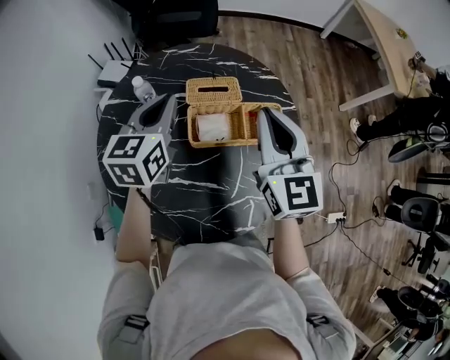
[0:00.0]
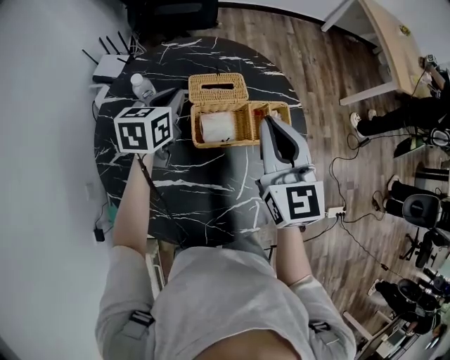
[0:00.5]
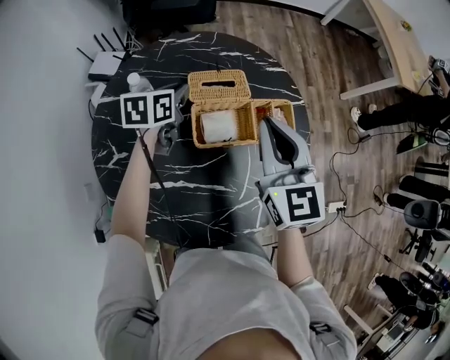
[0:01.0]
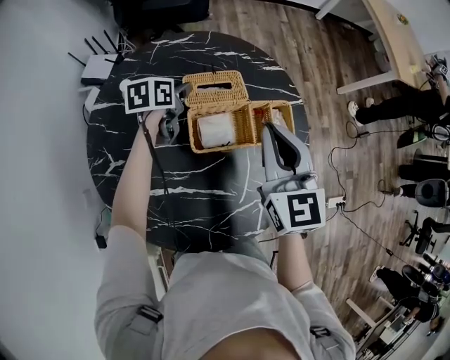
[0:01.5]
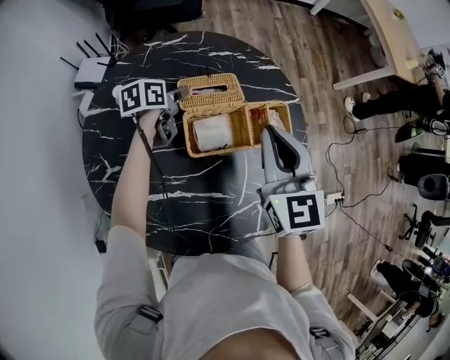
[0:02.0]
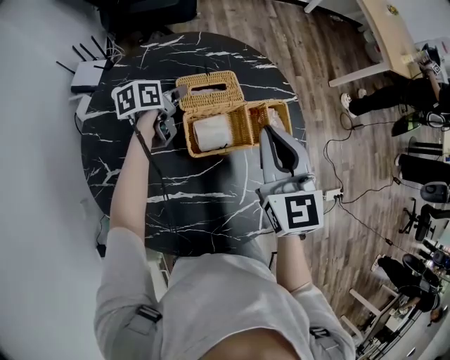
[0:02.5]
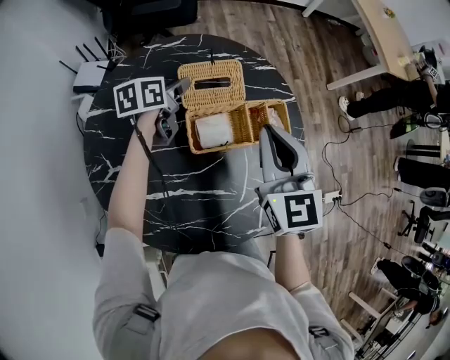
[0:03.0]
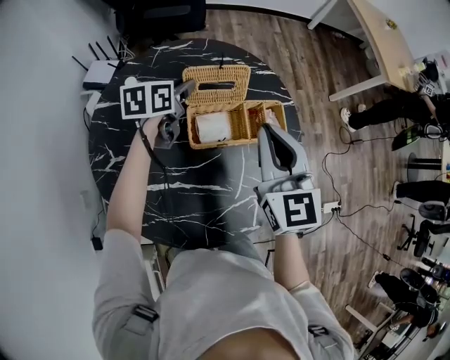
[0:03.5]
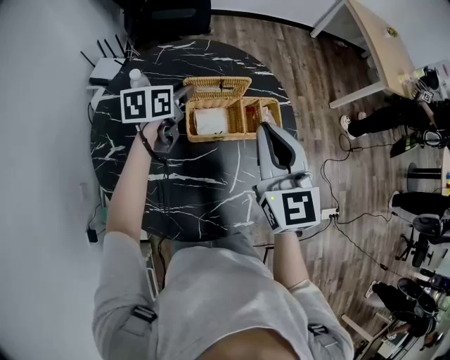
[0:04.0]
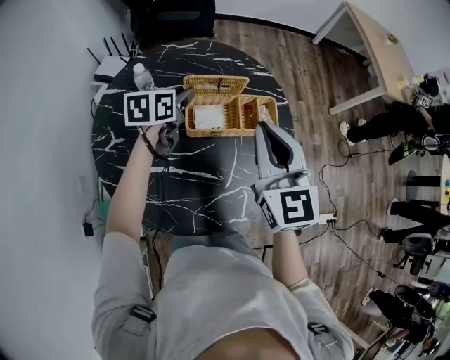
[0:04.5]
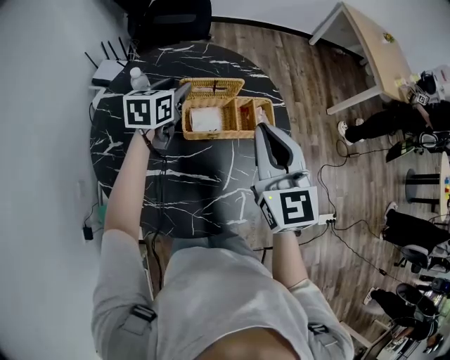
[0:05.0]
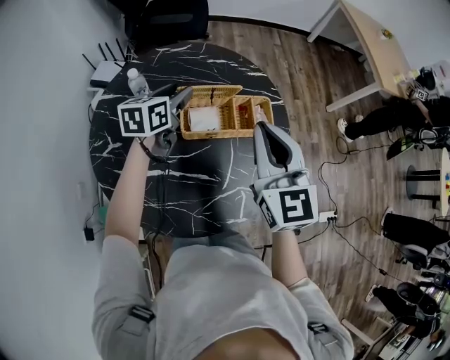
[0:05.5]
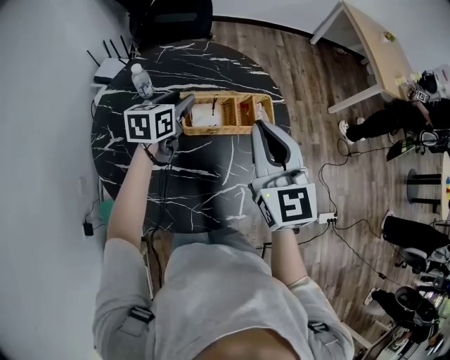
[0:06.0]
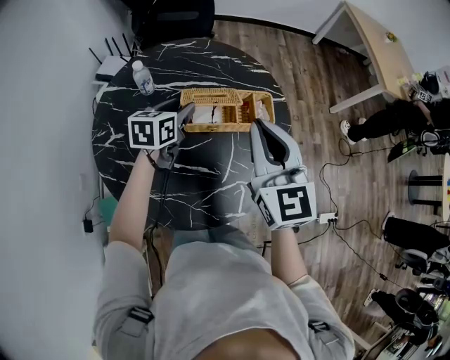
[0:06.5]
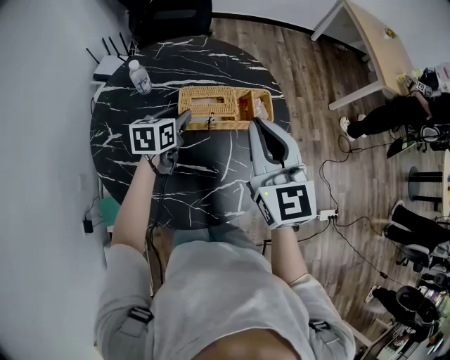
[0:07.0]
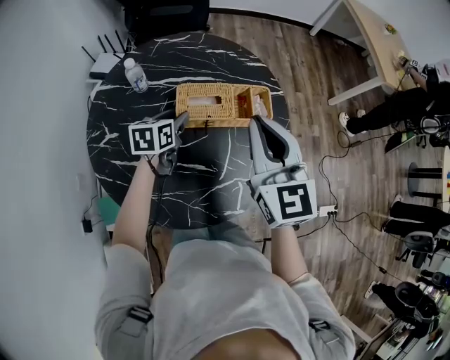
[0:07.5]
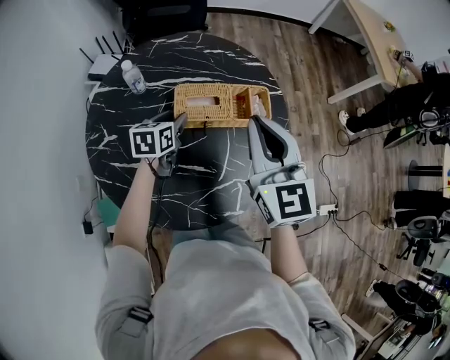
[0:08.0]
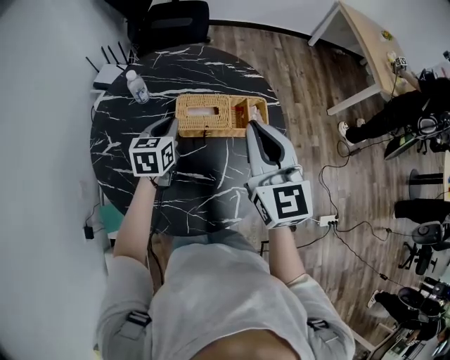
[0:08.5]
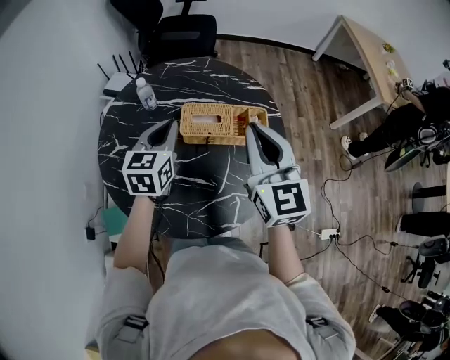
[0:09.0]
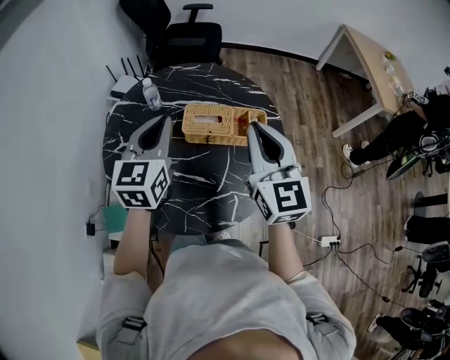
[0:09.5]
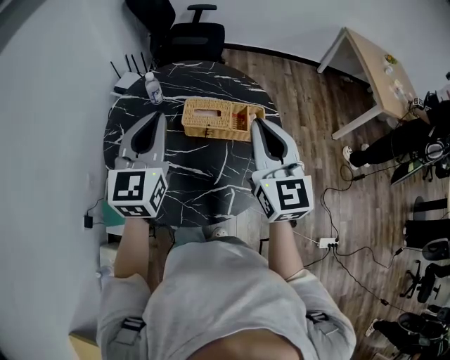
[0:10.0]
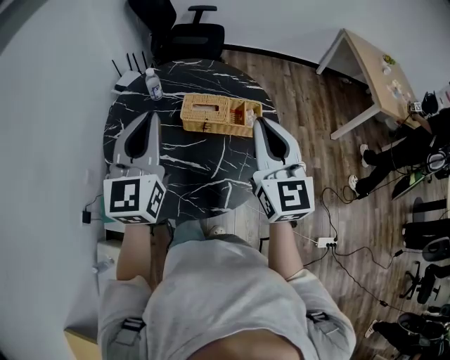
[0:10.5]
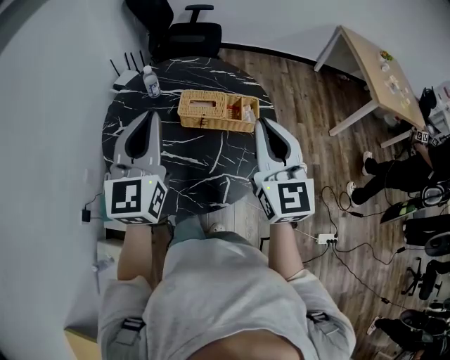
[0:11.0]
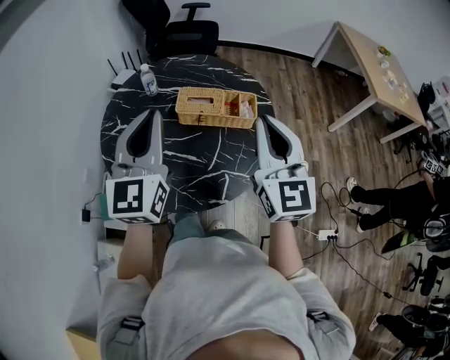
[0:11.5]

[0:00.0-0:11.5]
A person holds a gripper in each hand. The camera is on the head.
0:00.0 to 0:02.0: The right gripper travels downward by roughly 5 cm; the left gripper moves downward and forward, some 25 cm, swivels some 50 degrees, and opens.
0:02.0 to 0:04.0: The left gripper shifts approximately 15 cm upward and backward, while the right gripper goes approximately 10 cm backward and upward.
0:04.0 to 0:06.0: The left gripper goes approximately 5 cm backward.
0:06.0 to 0:07.5: The left gripper heads downward, covering approximately 10 cm.
0:07.5 to 0:09.5: The left gripper goes roughly 25 cm upward, rotates approximately 40 degrees, and closes its fingers.
0:09.5 to 0:11.5: The right gripper goes roughly 10 cm backward, while the left gripper shifts some 15 cm backward and upward.

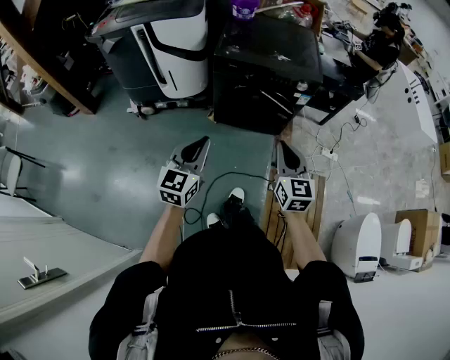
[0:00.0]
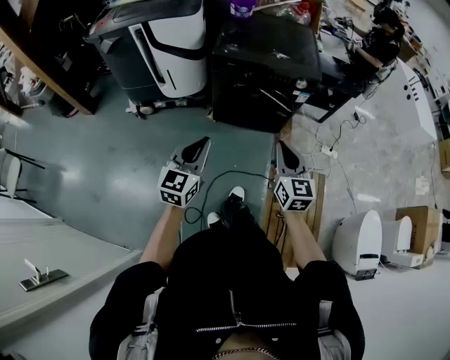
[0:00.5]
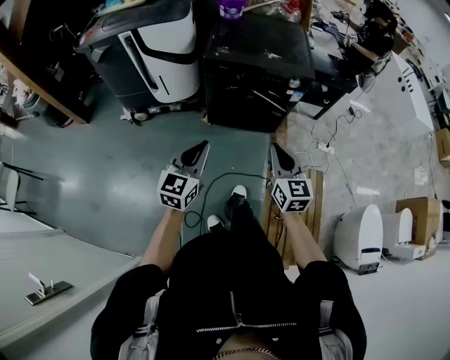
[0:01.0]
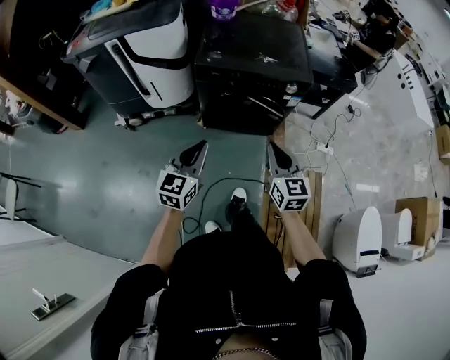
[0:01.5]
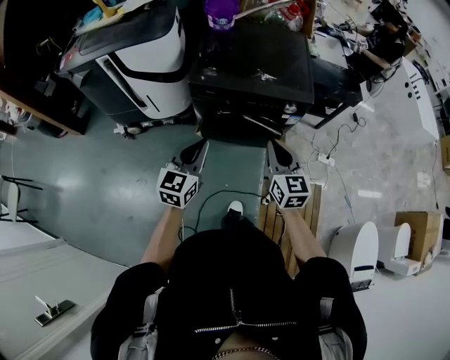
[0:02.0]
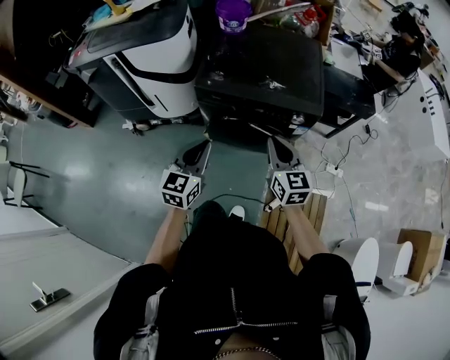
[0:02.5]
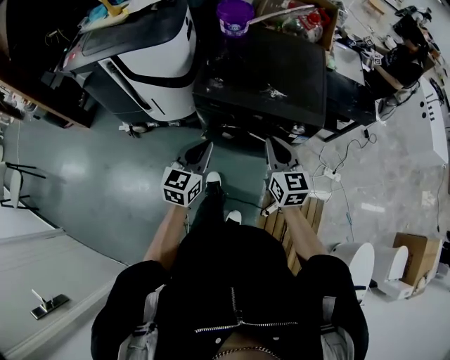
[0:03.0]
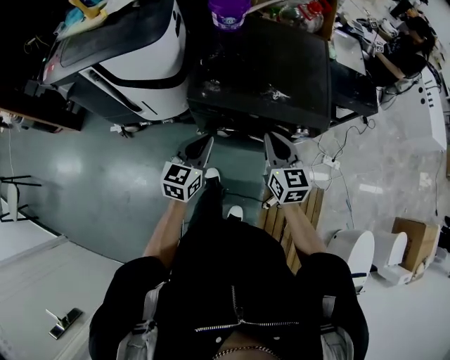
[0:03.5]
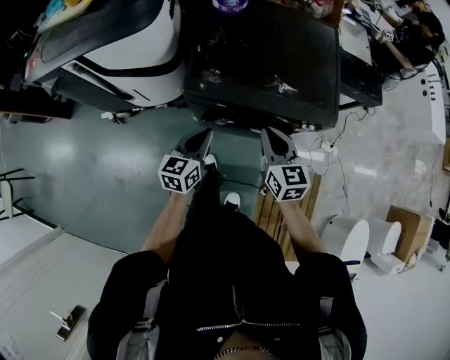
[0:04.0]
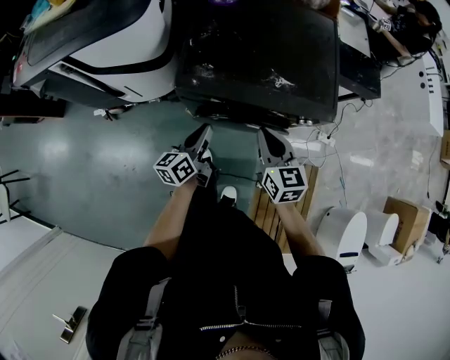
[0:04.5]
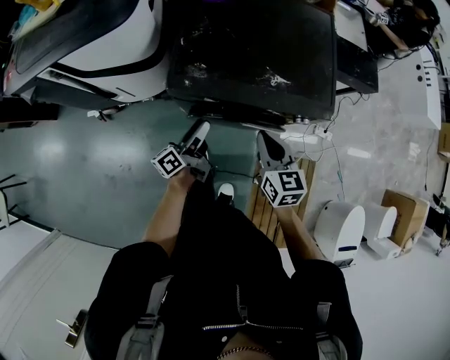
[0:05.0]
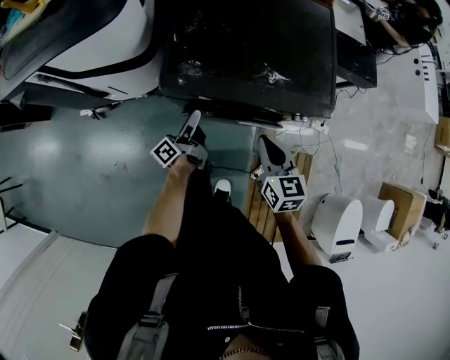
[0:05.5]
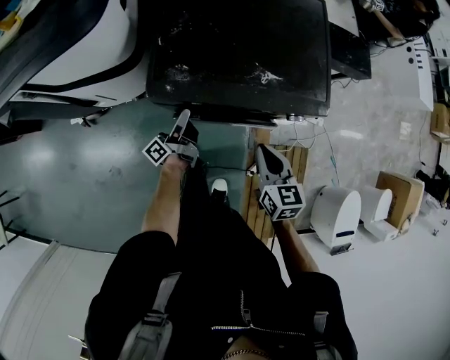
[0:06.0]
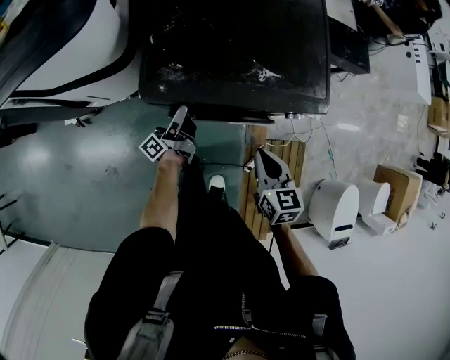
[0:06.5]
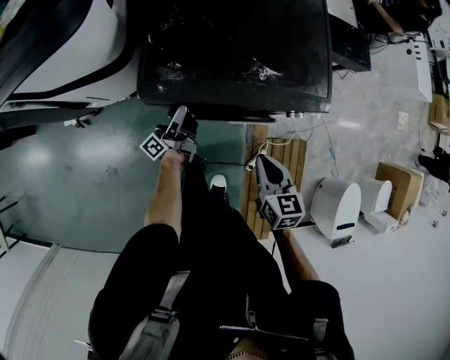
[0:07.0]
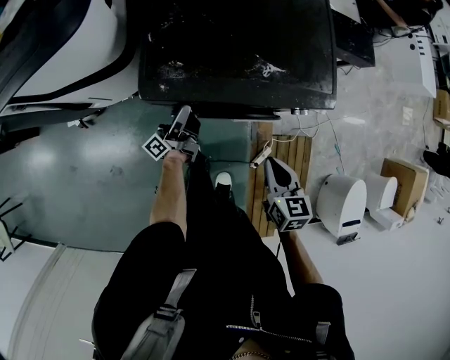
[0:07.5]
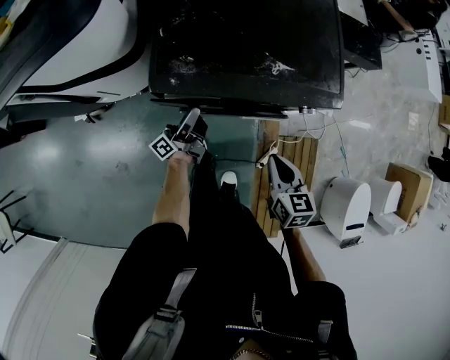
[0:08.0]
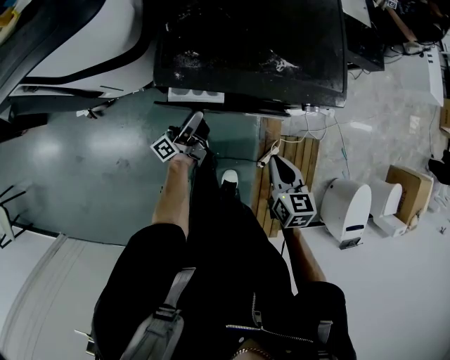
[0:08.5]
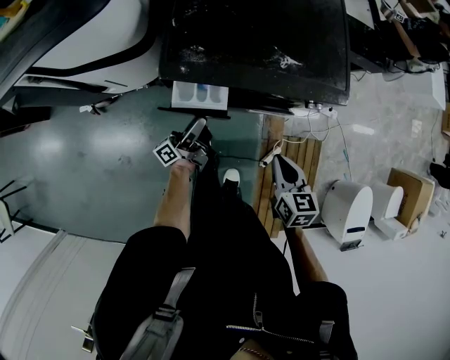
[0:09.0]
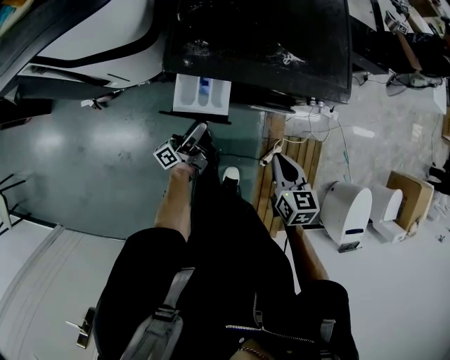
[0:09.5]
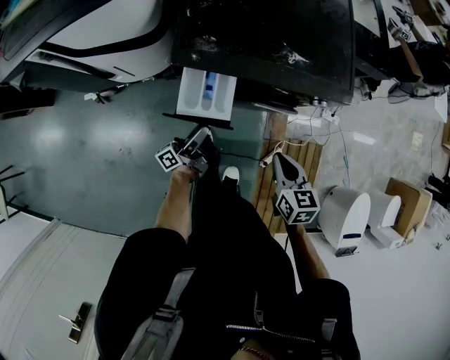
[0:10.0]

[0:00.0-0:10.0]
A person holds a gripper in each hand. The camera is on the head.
0:00.0 to 0:02.0: Both grippers move forward, about 20 cm.
0:02.0 to 0:04.0: The left gripper goes some 25 cm forward and downward, and rotates roughly 20 degrees, while the right gripper heads forward, covering roughly 20 cm.
0:04.0 to 0:06.0: The right gripper goes roughly 5 cm downward, while the left gripper goes roughly 15 cm downward and forward, rotates around the line of its fingers by some 60 degrees, counterclockwise from behind, and opens.
0:06.0 to 0:08.0: The right gripper shifts by some 5 cm.
0:08.0 to 0:10.0: The left gripper shifts roughly 10 cm backward.

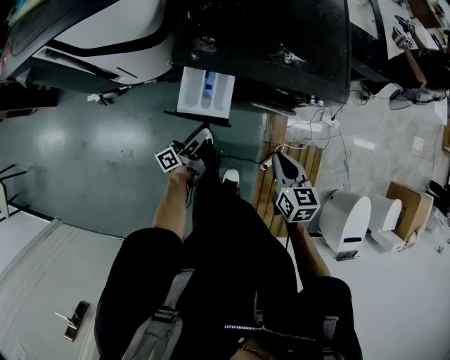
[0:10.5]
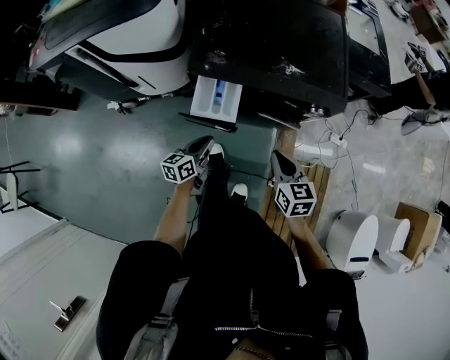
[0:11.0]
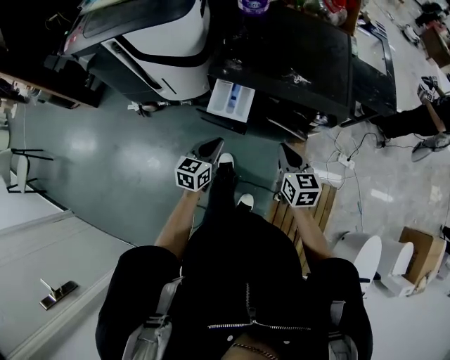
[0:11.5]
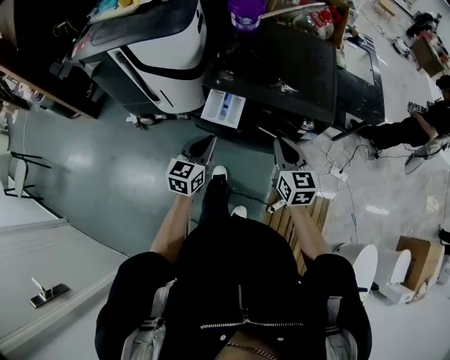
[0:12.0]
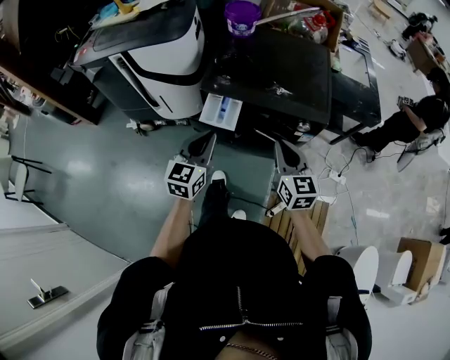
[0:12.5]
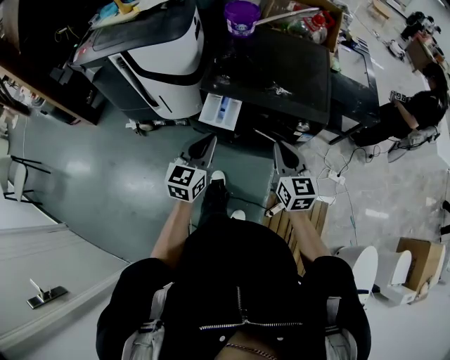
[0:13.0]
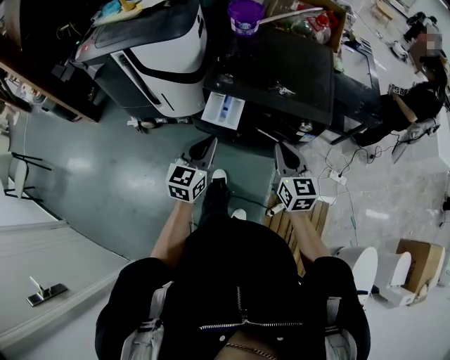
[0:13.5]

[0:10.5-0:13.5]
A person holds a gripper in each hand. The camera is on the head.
0:10.5 to 0:12.0: The right gripper heads upward, covering some 15 cm, and rotates about 30 degrees. Meanwhile the left gripper moves upward, about 20 cm, rolls clockwise, seen from behind, by approximately 70 degrees, and closes up.
0:12.0 to 0:13.5: The left gripper shifts approximately 5 cm upward.

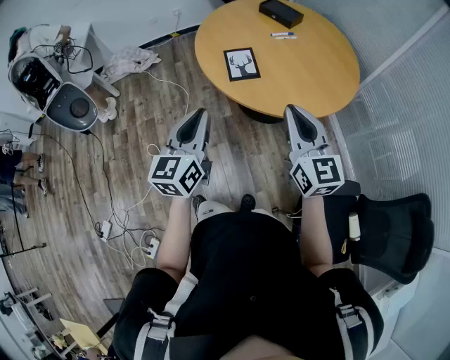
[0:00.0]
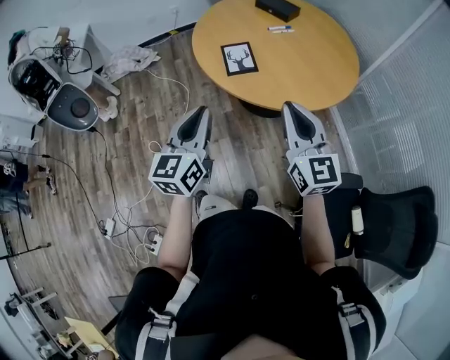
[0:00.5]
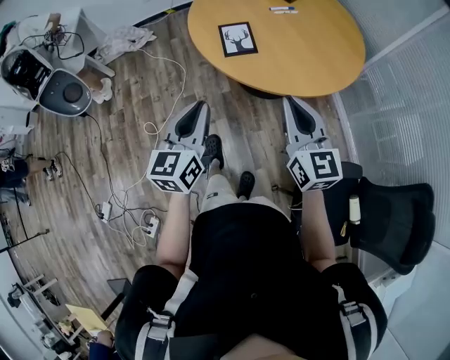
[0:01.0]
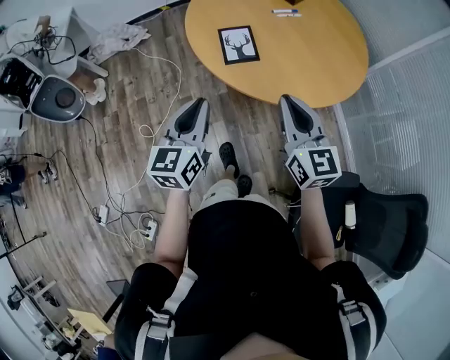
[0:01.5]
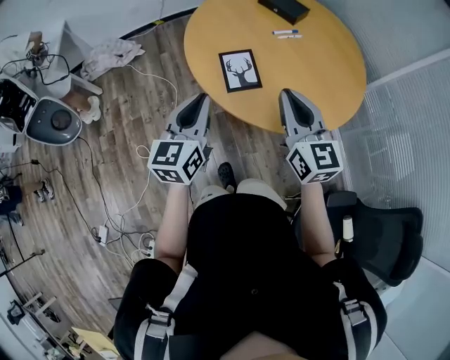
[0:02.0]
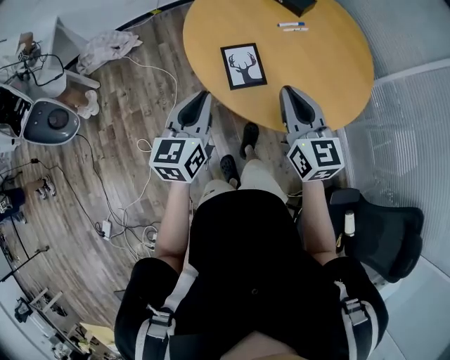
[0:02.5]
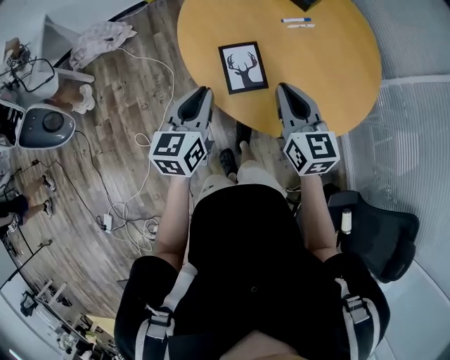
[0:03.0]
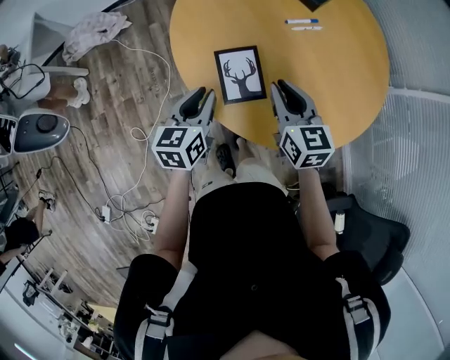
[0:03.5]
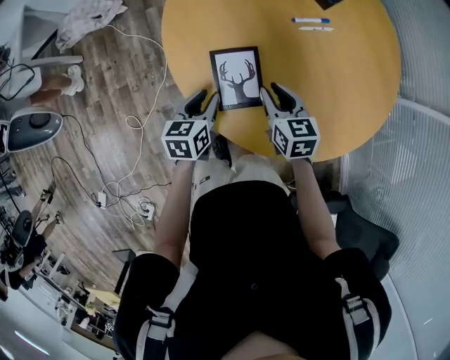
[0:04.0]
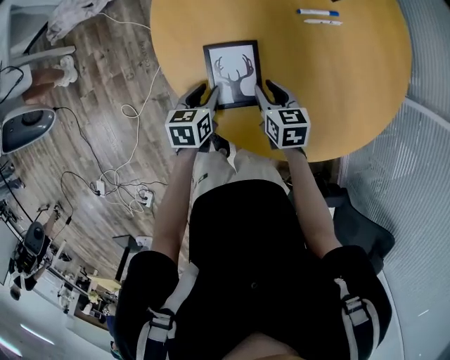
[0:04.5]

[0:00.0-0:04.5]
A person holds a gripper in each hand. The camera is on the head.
0:00.0 to 0:02.0: Both grippers travel together forward, roughly 20 cm.
0:02.0 to 0:04.5: Both grippers travel together downward and forward, about 50 cm. The left gripper tilts its fingers about 40 degrees downward, and opens its fingers, while the right gripper tilts its fingers about 40 degrees downward, and opens its fingers.
